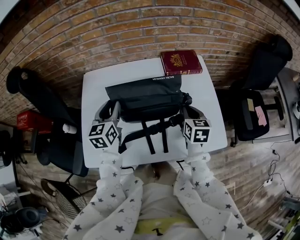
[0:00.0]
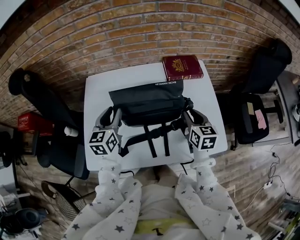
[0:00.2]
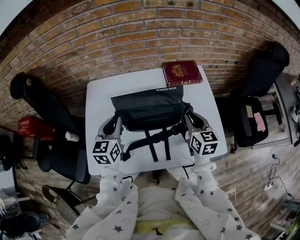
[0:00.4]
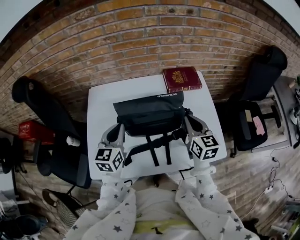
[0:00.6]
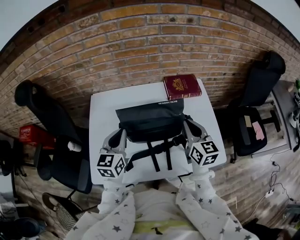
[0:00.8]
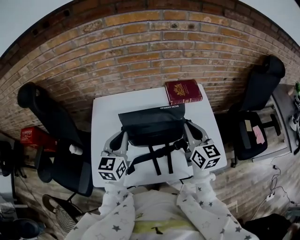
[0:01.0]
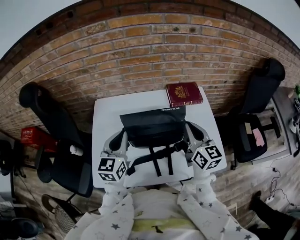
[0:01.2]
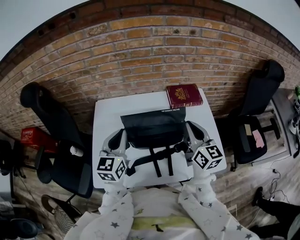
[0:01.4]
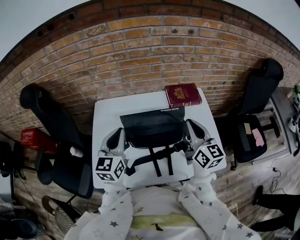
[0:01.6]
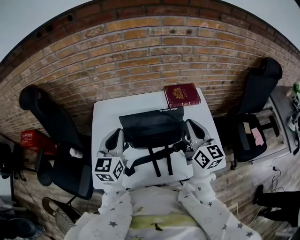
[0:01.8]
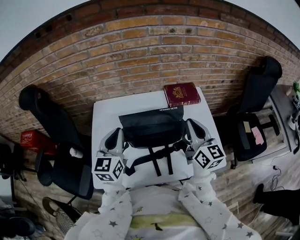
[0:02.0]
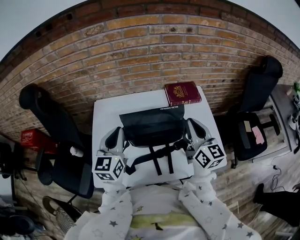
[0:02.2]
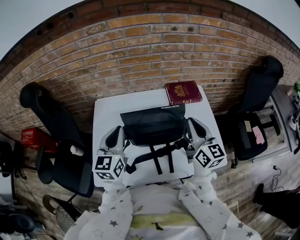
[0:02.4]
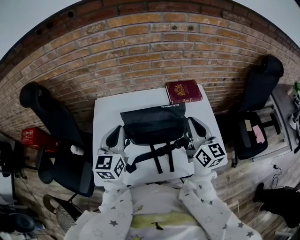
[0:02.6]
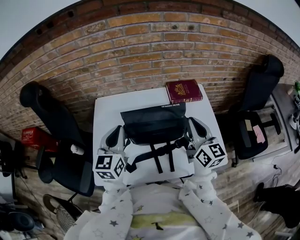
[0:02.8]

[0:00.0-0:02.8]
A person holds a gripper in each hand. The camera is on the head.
0.0 to 1.4 s: The left gripper shifts about 10 cm upward, and closes up. Meanwhile the right gripper travels upward by approximately 15 cm, angles its fingers upward, by approximately 30 degrees, and opens and closes again.
1.4 to 2.8 s: There are only small adjustments of the grippers.

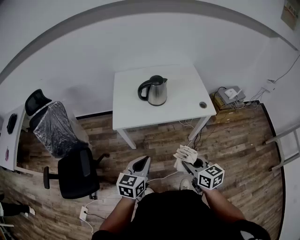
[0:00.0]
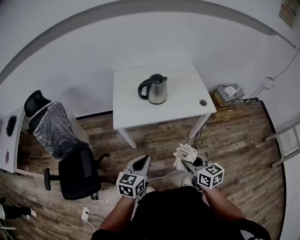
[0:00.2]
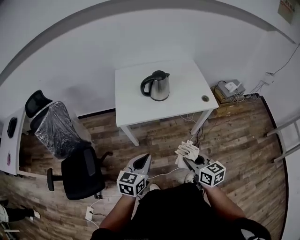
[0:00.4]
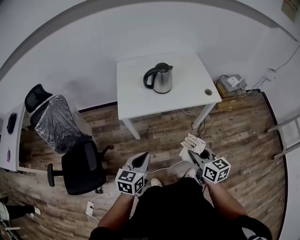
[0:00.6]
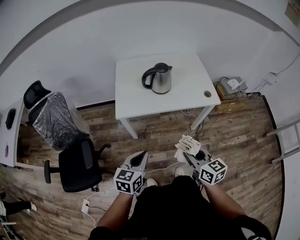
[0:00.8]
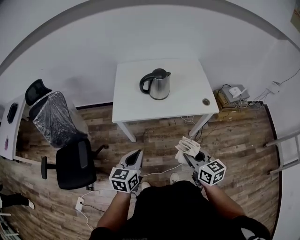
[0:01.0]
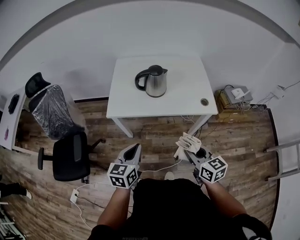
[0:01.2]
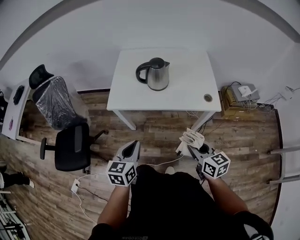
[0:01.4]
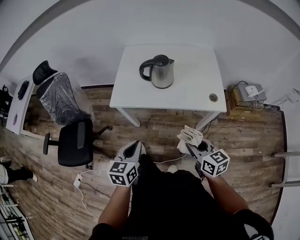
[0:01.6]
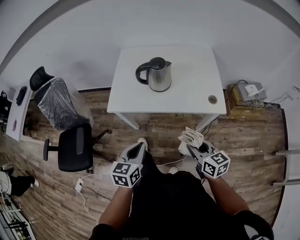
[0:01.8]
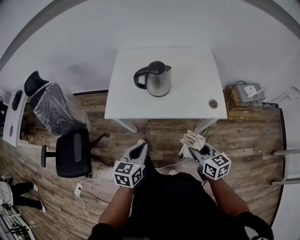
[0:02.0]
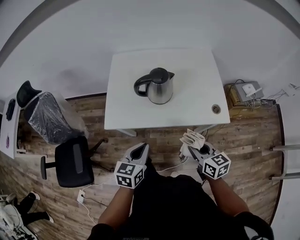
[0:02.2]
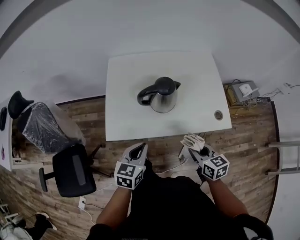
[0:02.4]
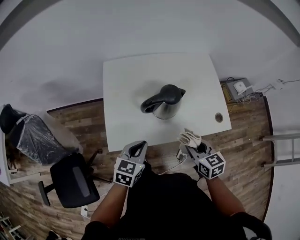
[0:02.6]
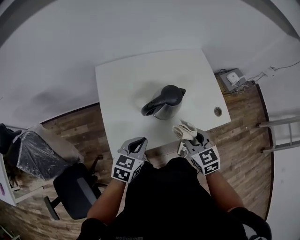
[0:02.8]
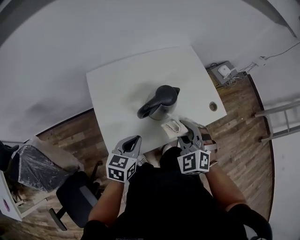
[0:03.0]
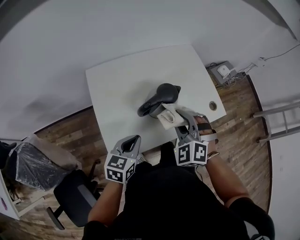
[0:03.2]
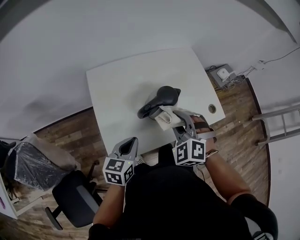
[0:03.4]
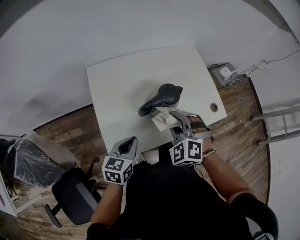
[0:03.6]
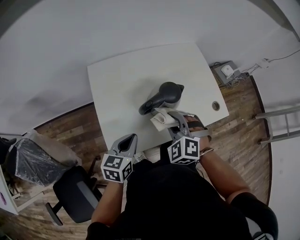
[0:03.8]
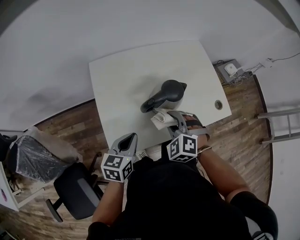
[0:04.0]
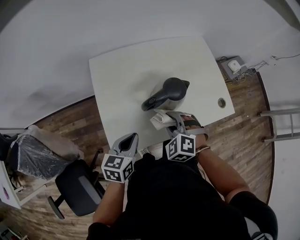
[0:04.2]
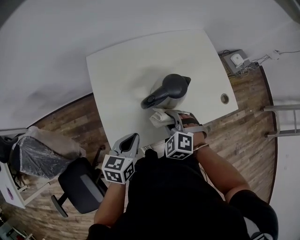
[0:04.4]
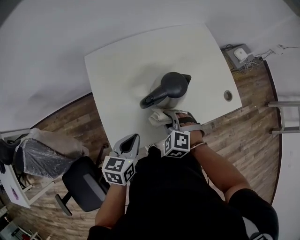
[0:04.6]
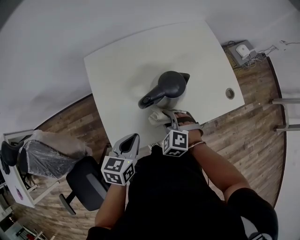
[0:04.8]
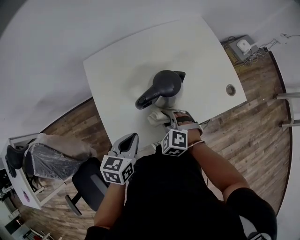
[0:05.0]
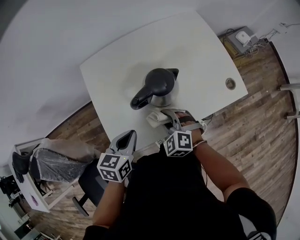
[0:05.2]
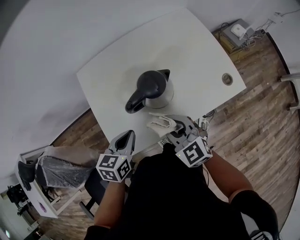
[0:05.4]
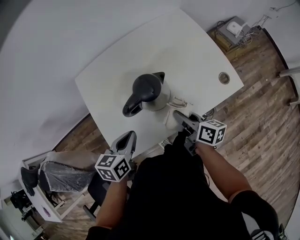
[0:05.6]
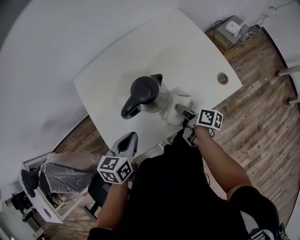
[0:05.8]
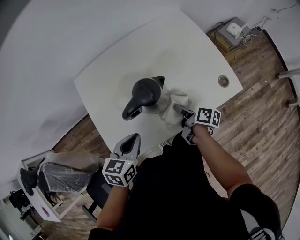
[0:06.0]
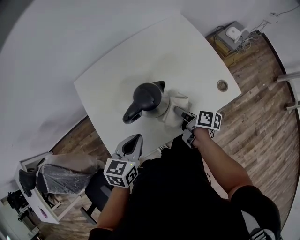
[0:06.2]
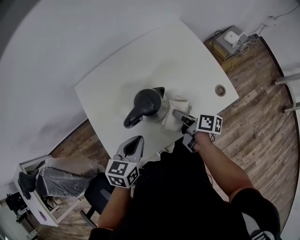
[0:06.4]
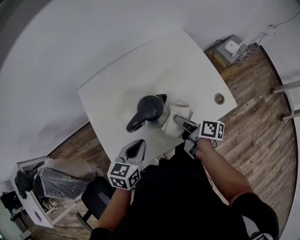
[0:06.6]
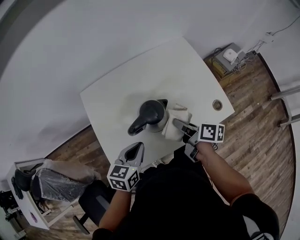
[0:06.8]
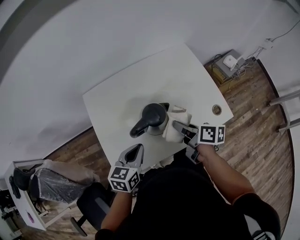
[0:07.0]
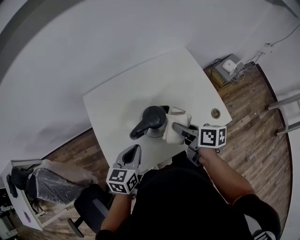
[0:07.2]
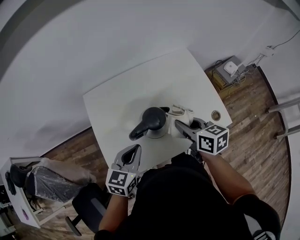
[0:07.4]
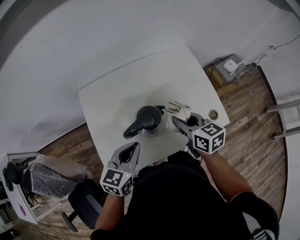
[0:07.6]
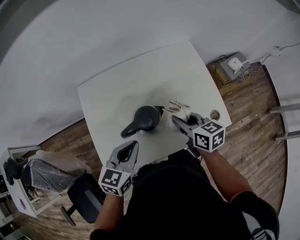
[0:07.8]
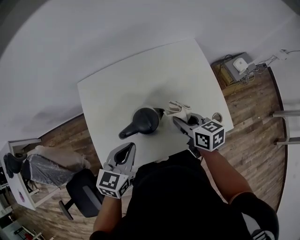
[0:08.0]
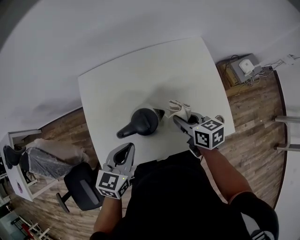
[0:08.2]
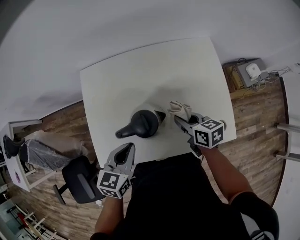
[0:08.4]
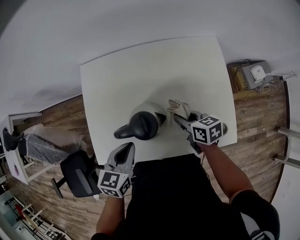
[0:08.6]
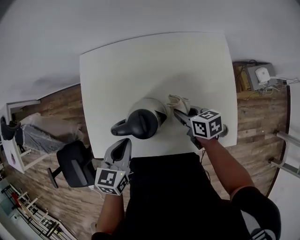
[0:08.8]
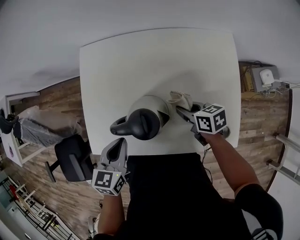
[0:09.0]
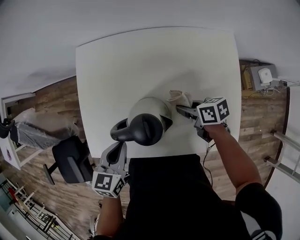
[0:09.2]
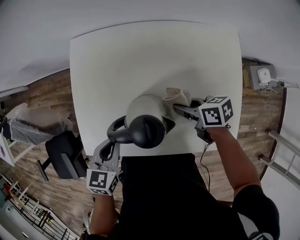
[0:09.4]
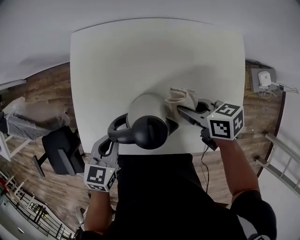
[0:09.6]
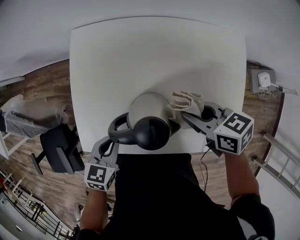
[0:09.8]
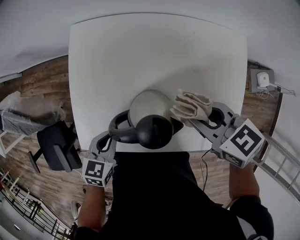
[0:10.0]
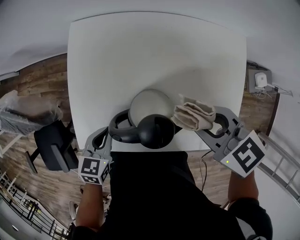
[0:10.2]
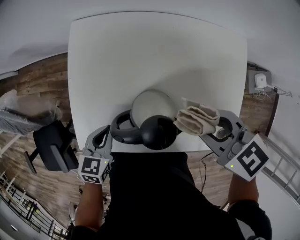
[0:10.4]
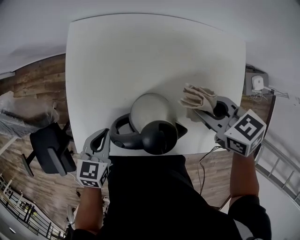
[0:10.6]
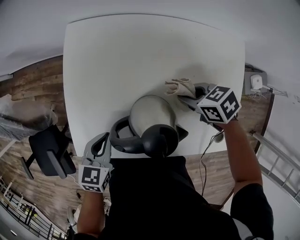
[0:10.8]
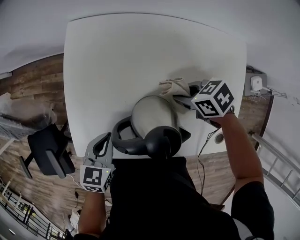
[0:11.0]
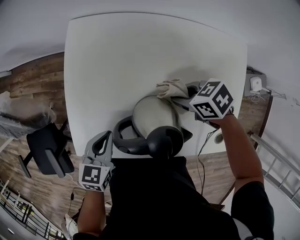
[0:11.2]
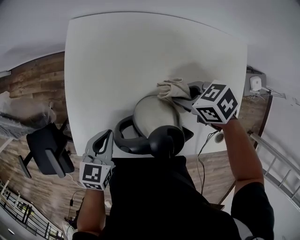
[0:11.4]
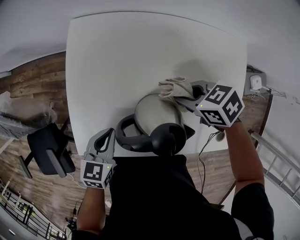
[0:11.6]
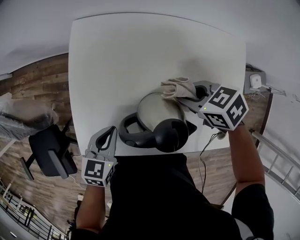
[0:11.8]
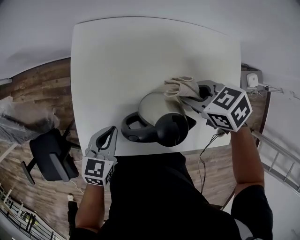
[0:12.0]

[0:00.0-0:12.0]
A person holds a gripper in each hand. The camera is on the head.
0.0 to 1.6 s: The left gripper ends up about 5 cm from where it was, and changes its angle by about 20 degrees; the right gripper shifts approximately 15 cm to the right and forward.
1.6 to 3.0 s: The left gripper changes place by roughly 35 cm, and changes its angle by about 40 degrees. The right gripper moves some 35 cm, and changes its angle by roughly 70 degrees.
3.0 to 4.4 s: The right gripper heads downward and to the left, covering roughly 15 cm.
4.4 to 6.0 s: The right gripper travels to the right and downward by some 15 cm, and rolls clockwise, seen from behind, by about 120 degrees, while the left gripper travels to the right by approximately 5 cm.
6.0 to 7.6 s: The left gripper heads upward, covering about 5 cm. Meanwhile the right gripper travels upward by approximately 20 cm, and twists some 60 degrees counterclockwise, seen from behind.
7.6 to 9.0 s: The right gripper moves downward, some 20 cm, and turns by about 40 degrees. Meanwhile the left gripper is displaced downward by about 5 cm, and rotates about 30 degrees.
9.0 to 10.4 s: The right gripper travels upward by roughly 15 cm, and swivels about 30 degrees. The left gripper is displaced downward and to the left by some 10 cm.
10.4 to 12.0 s: The right gripper goes some 10 cm downward.

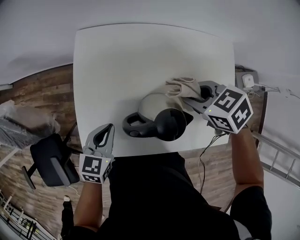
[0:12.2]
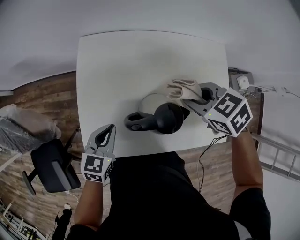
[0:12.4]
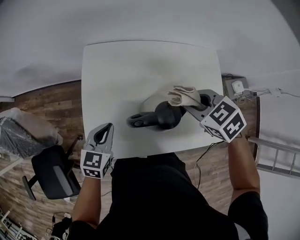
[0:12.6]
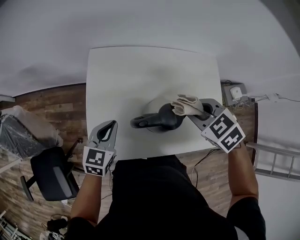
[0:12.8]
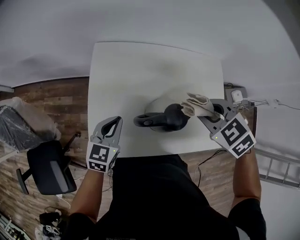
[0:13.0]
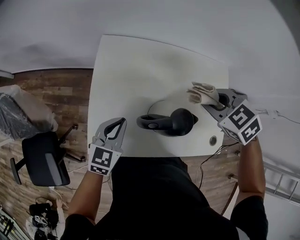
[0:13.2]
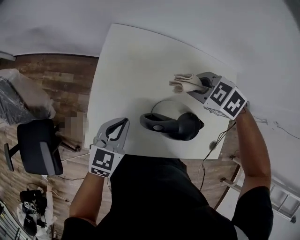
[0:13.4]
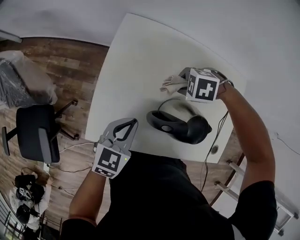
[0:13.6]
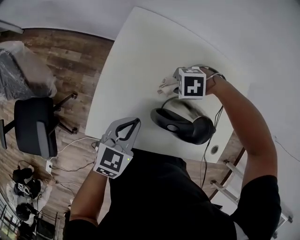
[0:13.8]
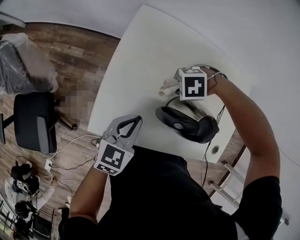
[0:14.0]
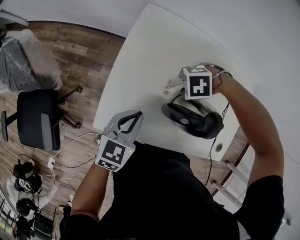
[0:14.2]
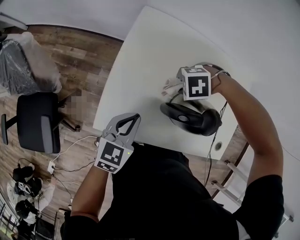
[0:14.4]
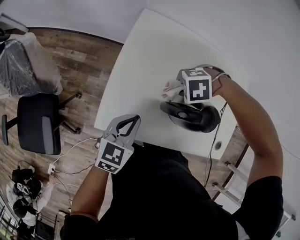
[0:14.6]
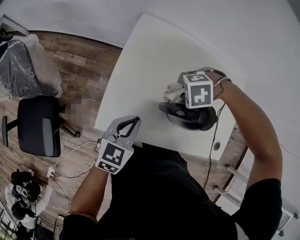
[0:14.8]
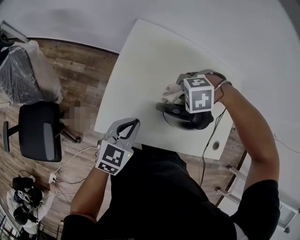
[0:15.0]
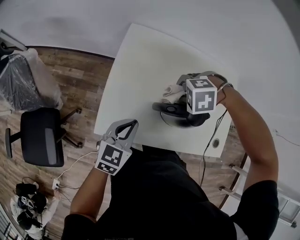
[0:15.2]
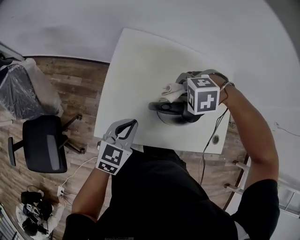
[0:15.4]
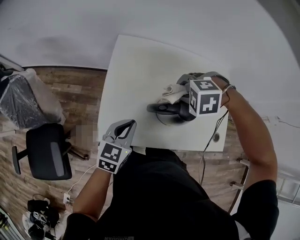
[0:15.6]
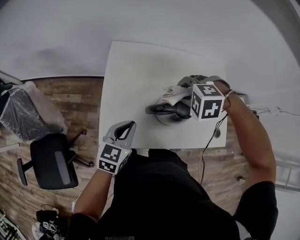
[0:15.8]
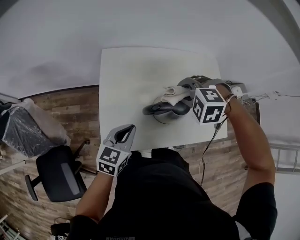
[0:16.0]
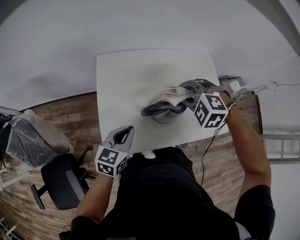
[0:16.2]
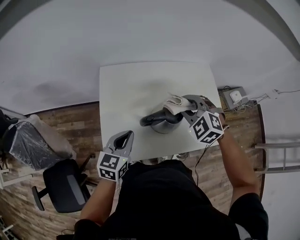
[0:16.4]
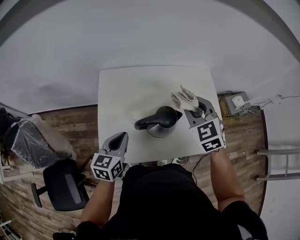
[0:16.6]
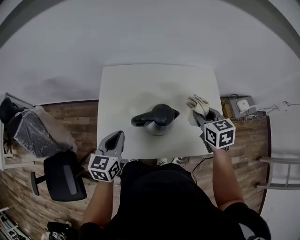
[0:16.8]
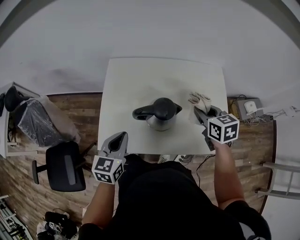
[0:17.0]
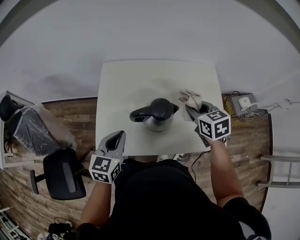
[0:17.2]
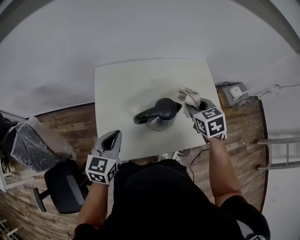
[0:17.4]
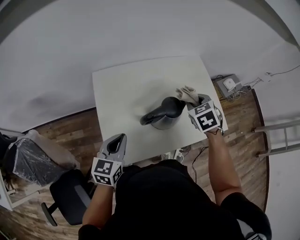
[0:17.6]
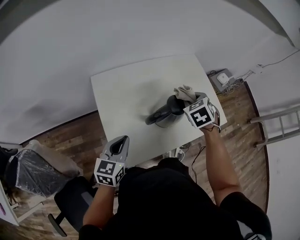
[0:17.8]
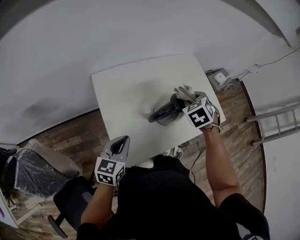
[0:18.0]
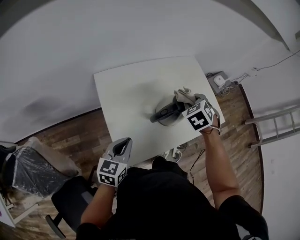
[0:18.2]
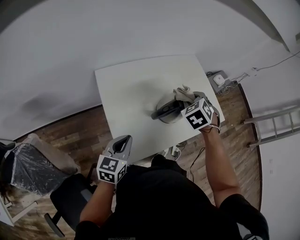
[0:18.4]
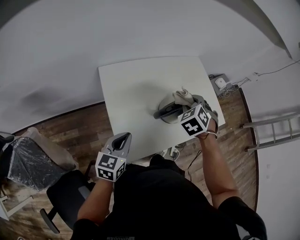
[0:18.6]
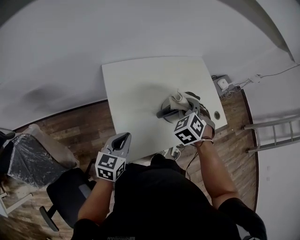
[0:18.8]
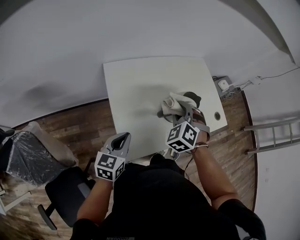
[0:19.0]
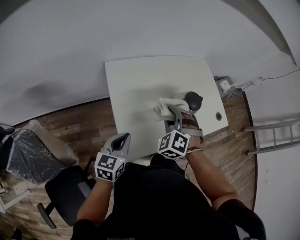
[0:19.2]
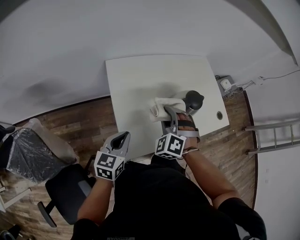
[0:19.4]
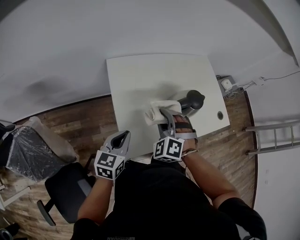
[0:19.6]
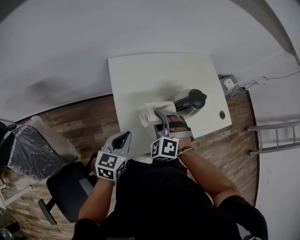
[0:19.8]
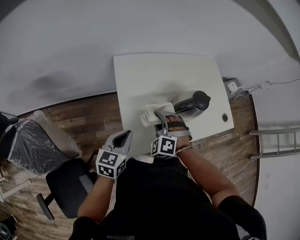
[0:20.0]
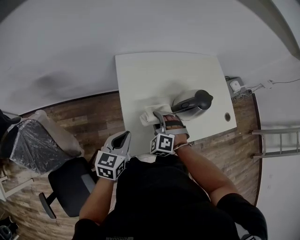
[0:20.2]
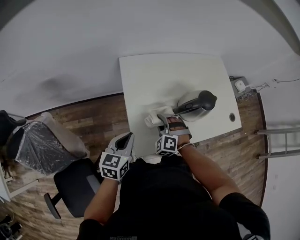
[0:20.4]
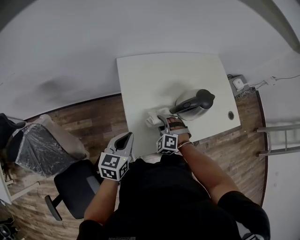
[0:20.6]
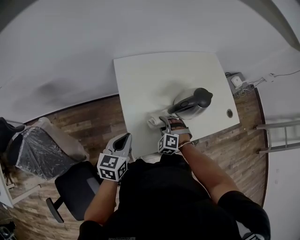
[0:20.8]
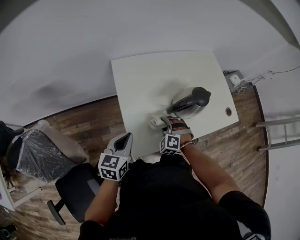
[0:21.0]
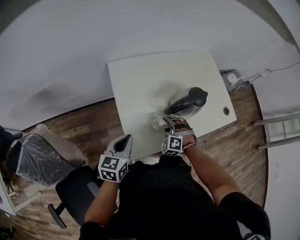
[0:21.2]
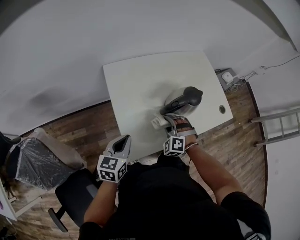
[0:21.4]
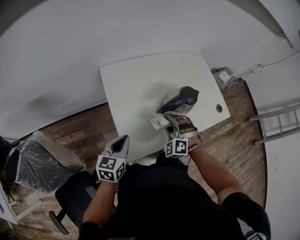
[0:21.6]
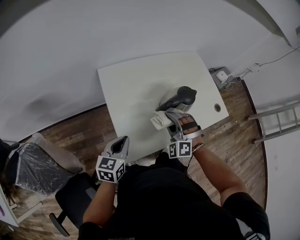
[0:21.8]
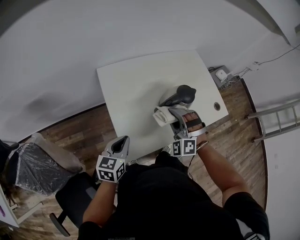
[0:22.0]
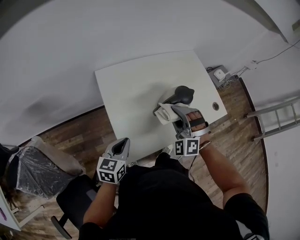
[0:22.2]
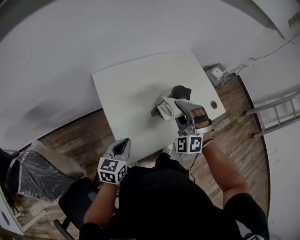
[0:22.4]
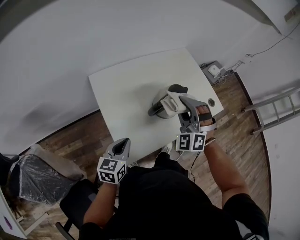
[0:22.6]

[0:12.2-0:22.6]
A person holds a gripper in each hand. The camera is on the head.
12.2 to 13.6 s: The right gripper changes place by about 15 cm, and rolls counterclockwise, seen from behind, by about 50 degrees.
13.6 to 15.2 s: The right gripper shifts approximately 10 cm upward; the left gripper shifts by approximately 5 cm.
15.2 to 16.6 s: The right gripper is displaced upward by approximately 15 cm, and tilts its fingers some 50 degrees upward. The left gripper heads upward, covering approximately 5 cm.
16.6 to 18.2 s: The left gripper changes place by some 10 cm, and turns by roughly 20 degrees. The right gripper shifts approximately 5 cm downward, and turns by some 40 degrees.
18.2 to 19.6 s: The left gripper moves about 5 cm. Meanwhile the right gripper is displaced backward and to the left by about 20 cm, and swivels roughly 40 degrees.
19.6 to 21.2 s: The right gripper goes approximately 15 cm downward.
21.2 to 22.6 s: The right gripper moves upward, approximately 25 cm, and tips its fingers upward by about 30 degrees.
